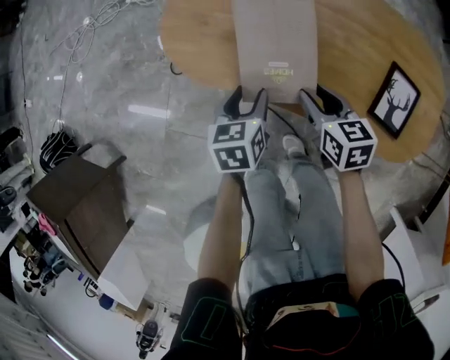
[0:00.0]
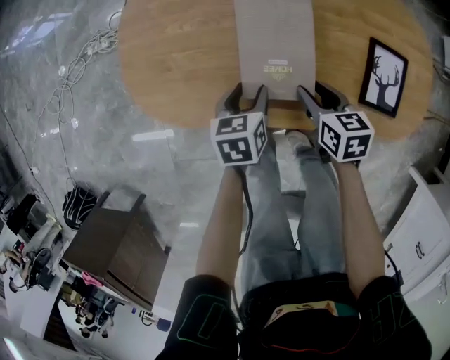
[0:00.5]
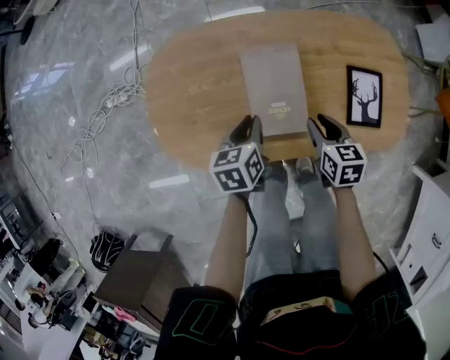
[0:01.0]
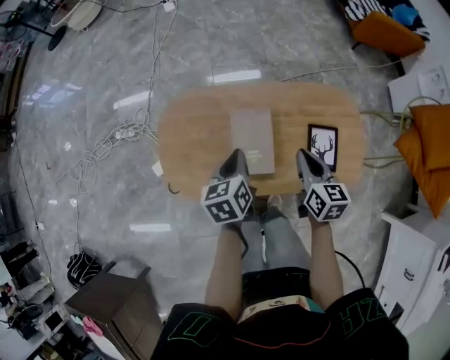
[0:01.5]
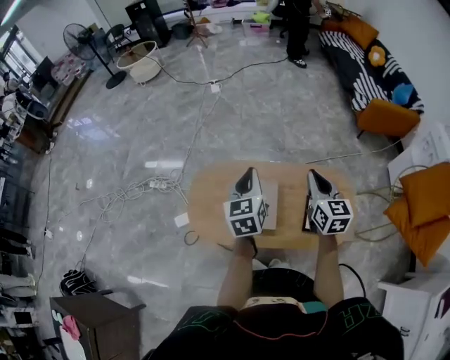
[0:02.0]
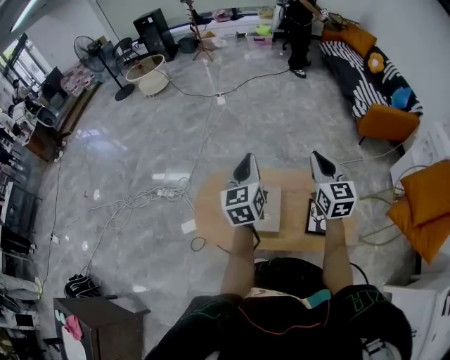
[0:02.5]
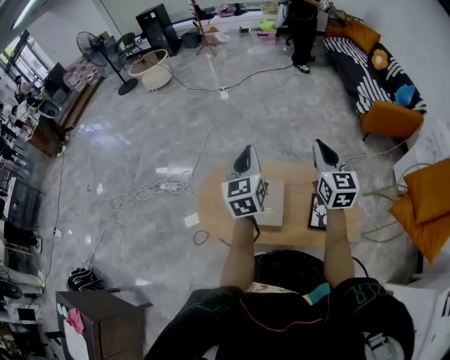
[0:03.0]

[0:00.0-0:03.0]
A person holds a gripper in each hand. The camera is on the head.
0:00.0 to 0:01.5: The grippers both shift upward by about 20 cm. The left gripper closes. The right gripper swivels approximately 40 degrees, and closes.
0:01.5 to 0:03.0: Both grippers travel together upward, roughly 30 cm. The left gripper tilts its fingers approximately 30 degrees upward. Meanwhile the right gripper changes its angle by approximately 40 degrees.

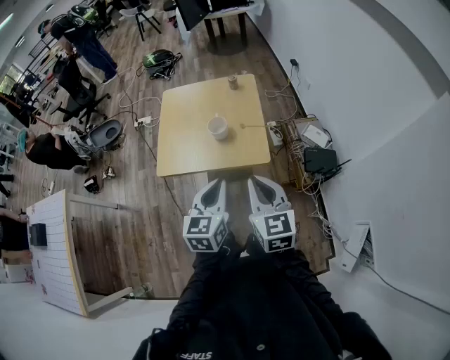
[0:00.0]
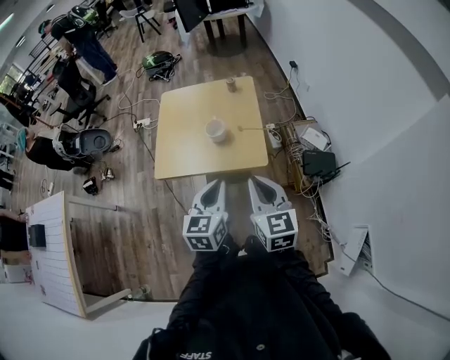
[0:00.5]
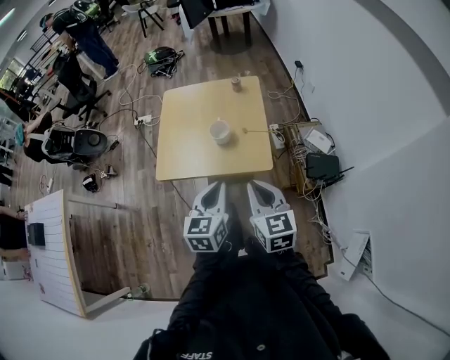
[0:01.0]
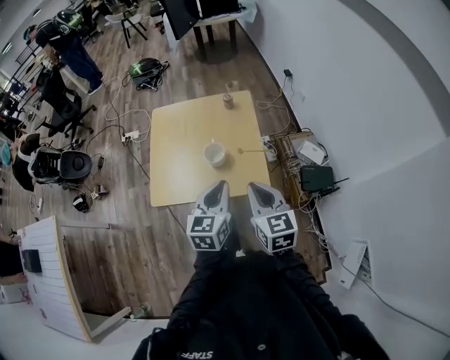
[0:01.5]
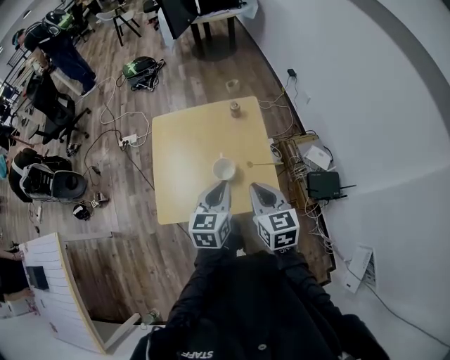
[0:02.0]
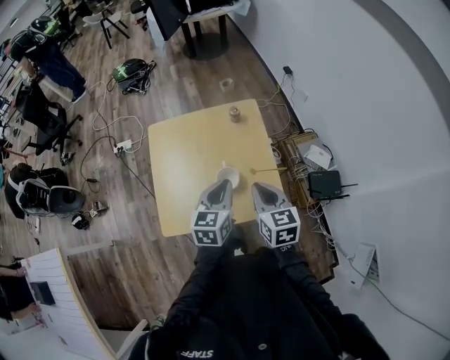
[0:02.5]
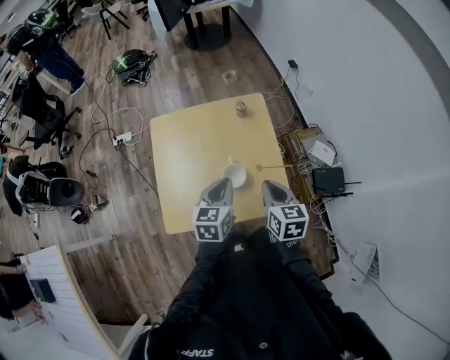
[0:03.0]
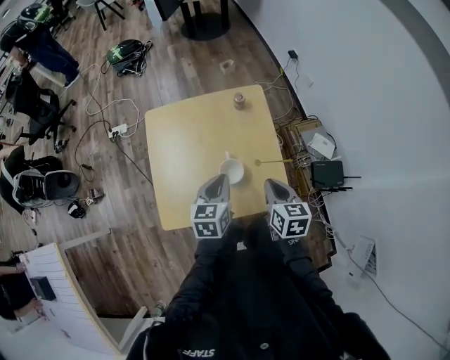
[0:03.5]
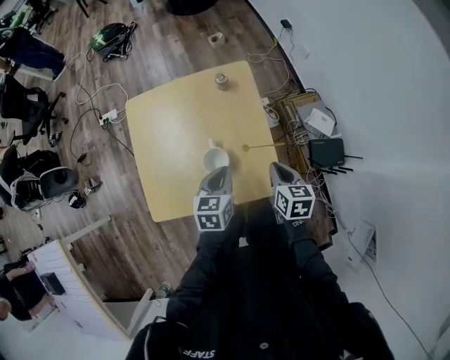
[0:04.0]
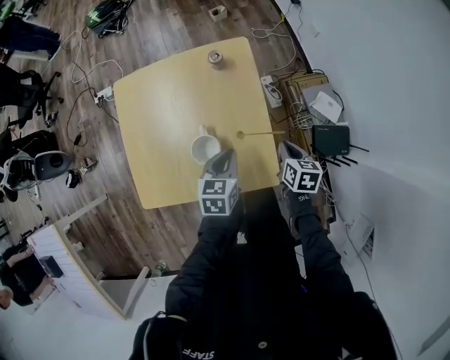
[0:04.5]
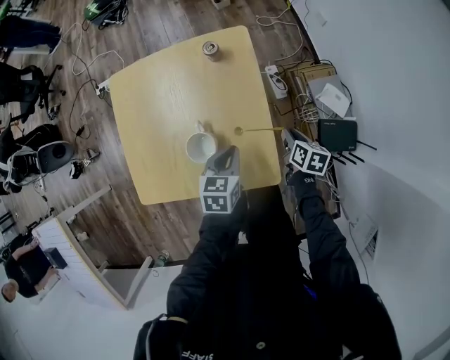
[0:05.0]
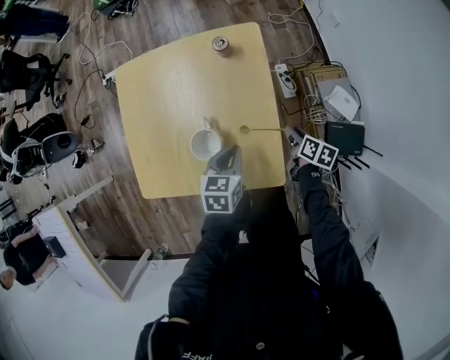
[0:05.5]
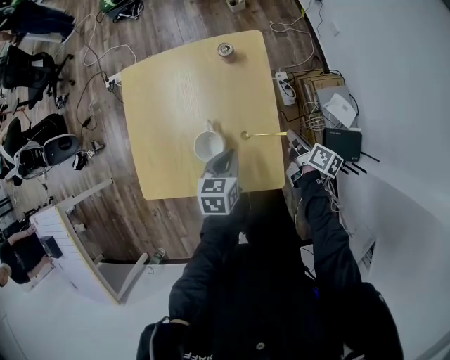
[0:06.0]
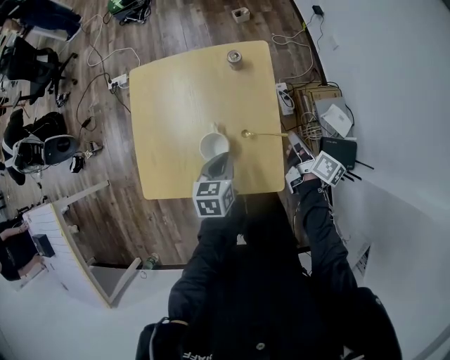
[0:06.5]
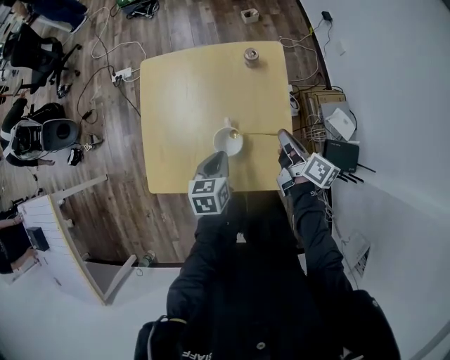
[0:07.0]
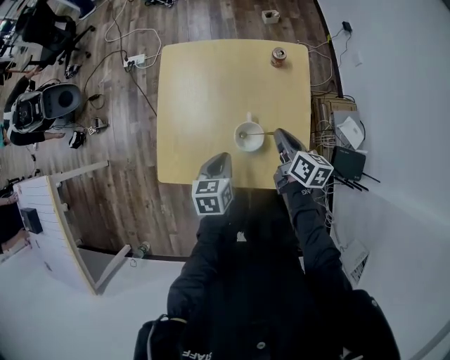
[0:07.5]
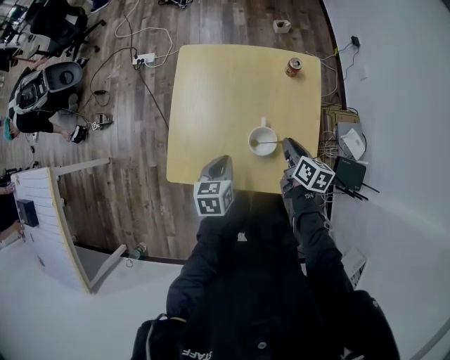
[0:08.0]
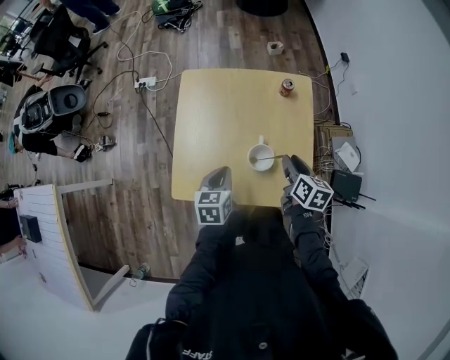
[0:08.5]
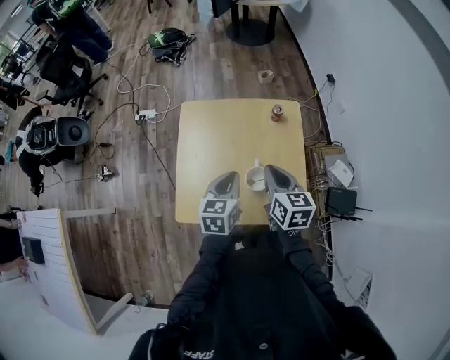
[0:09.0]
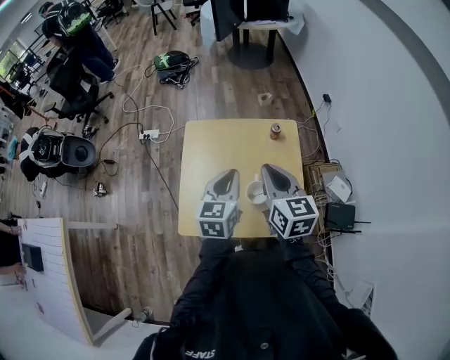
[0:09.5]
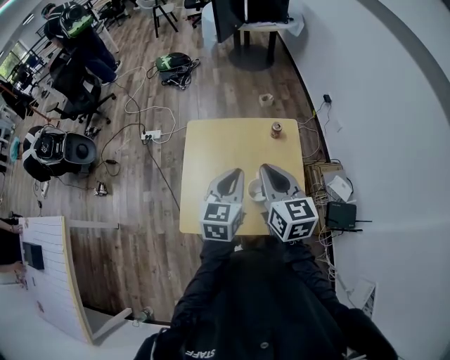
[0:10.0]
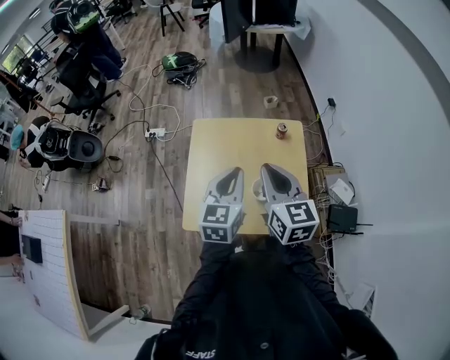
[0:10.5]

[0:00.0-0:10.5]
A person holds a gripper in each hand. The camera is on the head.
0:00.0 to 0:02.0: The two grippers go roughly 25 cm forward.
0:02.0 to 0:04.0: The left gripper is displaced downward and forward by roughly 15 cm; the right gripper goes some 20 cm downward, forward and to the right, and turns by roughly 30 degrees.
0:04.0 to 0:06.5: The right gripper goes approximately 10 cm forward and to the right, travels downward and back again, approximately 20 cm each way, twists about 40 degrees clockwise, seen from behind, and opens and closes again; the left gripper shifts some 5 cm downward.
0:06.5 to 0:08.5: The two grippers go roughly 20 cm to the left. The right gripper swivels about 40 degrees, and opens.
0:08.5 to 0:10.5: The right gripper shifts roughly 30 cm upward and to the left, rotates approximately 40 degrees, and closes, while the left gripper heads upward, covering some 25 cm, and rotates some 30 degrees.

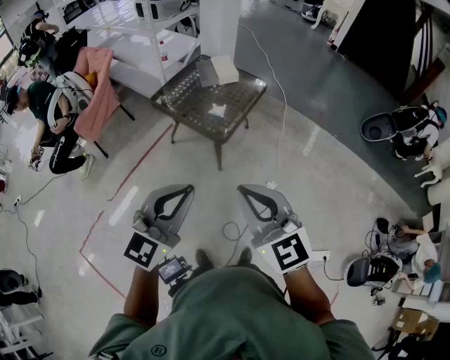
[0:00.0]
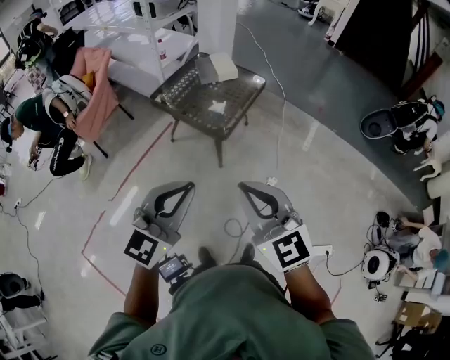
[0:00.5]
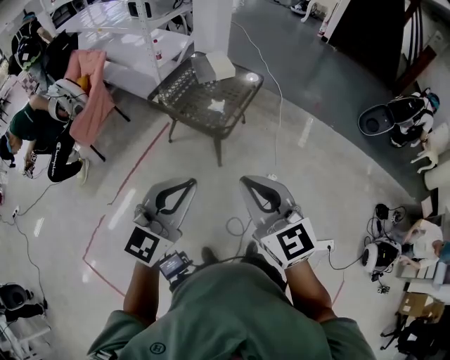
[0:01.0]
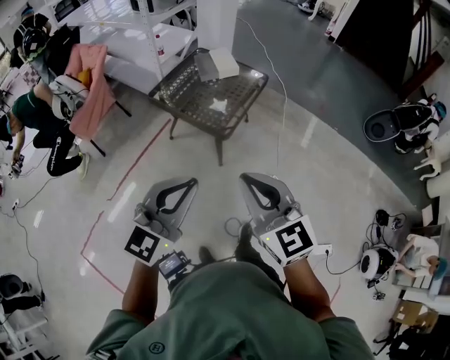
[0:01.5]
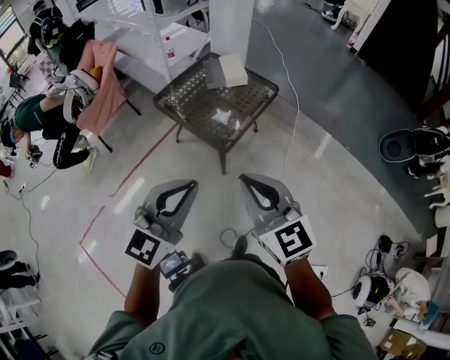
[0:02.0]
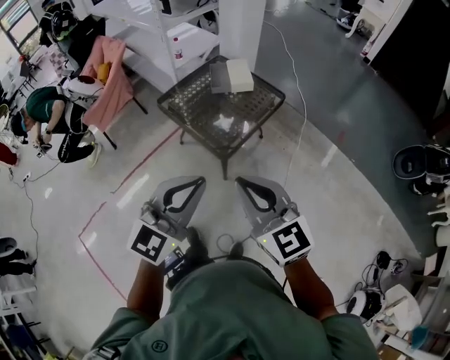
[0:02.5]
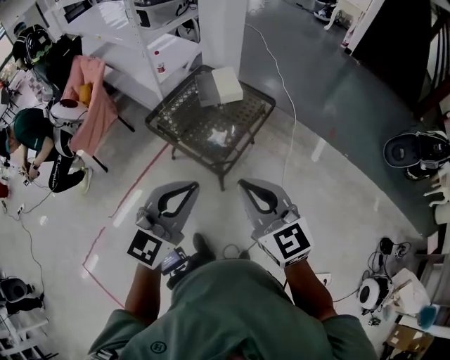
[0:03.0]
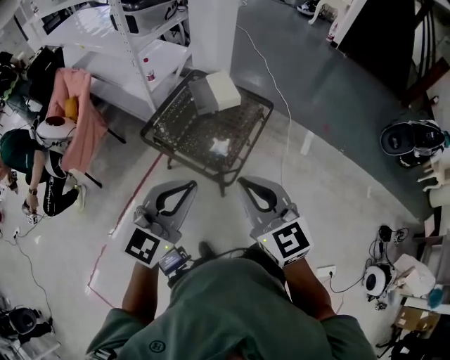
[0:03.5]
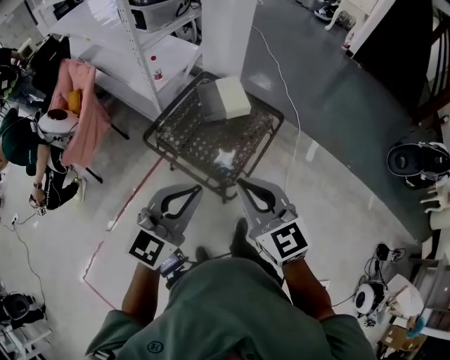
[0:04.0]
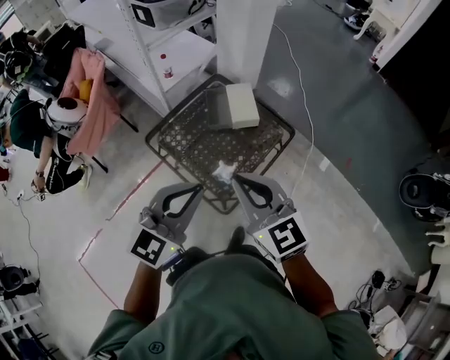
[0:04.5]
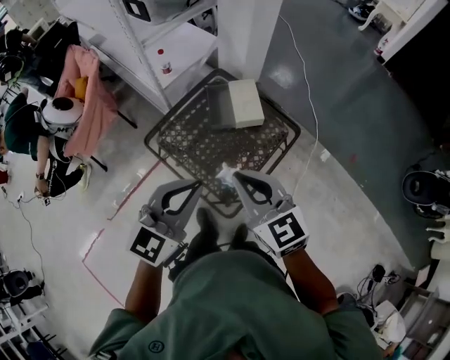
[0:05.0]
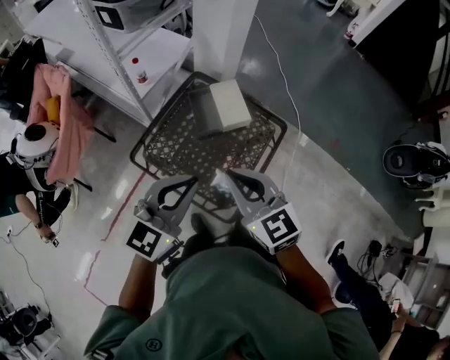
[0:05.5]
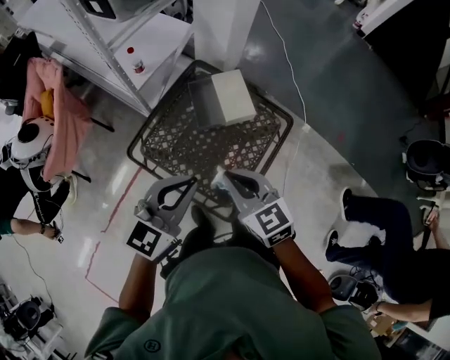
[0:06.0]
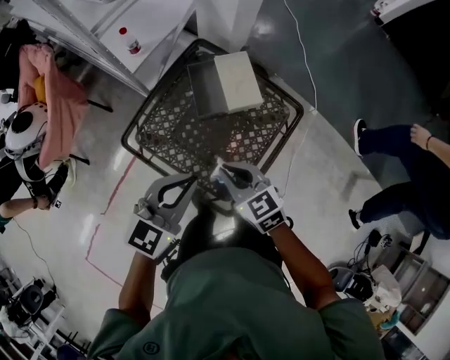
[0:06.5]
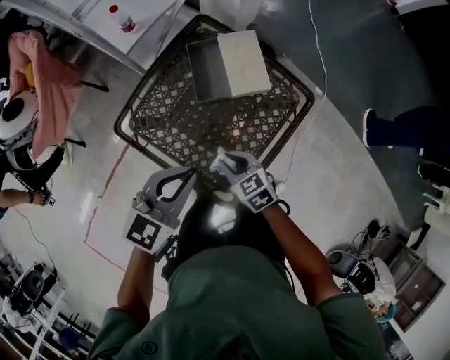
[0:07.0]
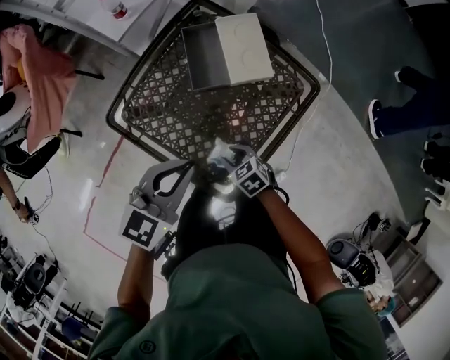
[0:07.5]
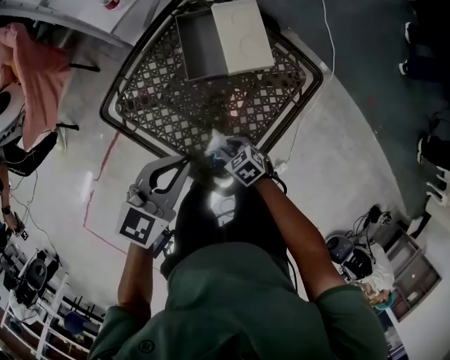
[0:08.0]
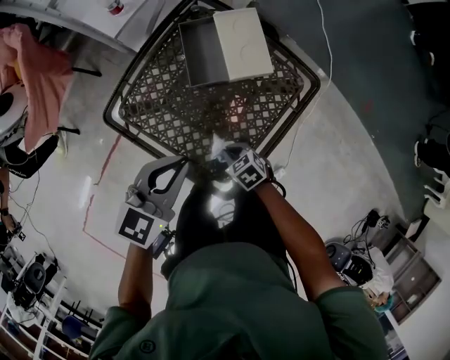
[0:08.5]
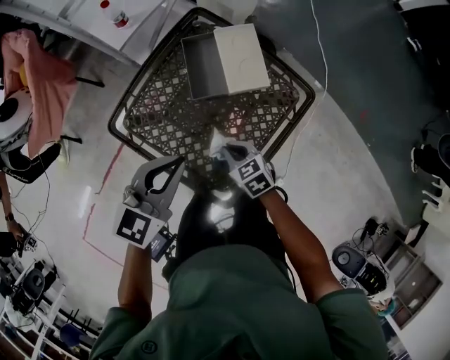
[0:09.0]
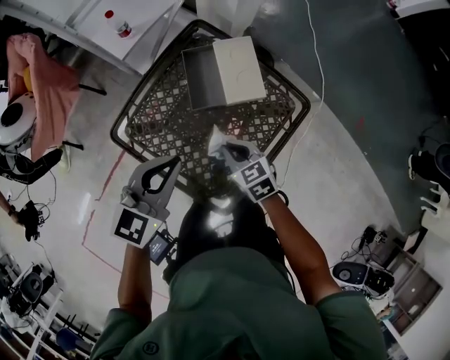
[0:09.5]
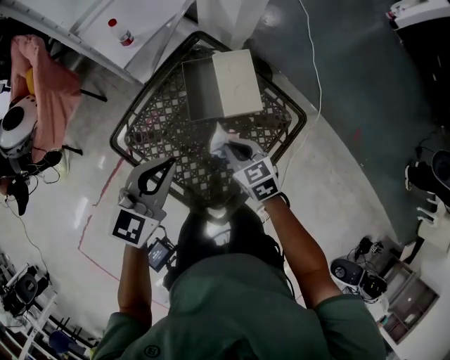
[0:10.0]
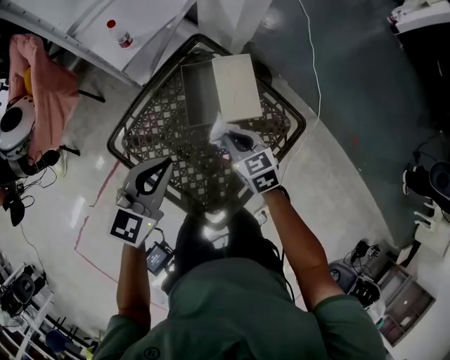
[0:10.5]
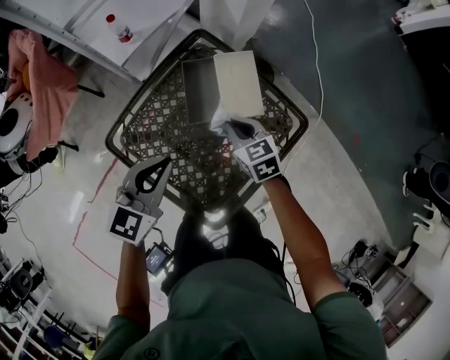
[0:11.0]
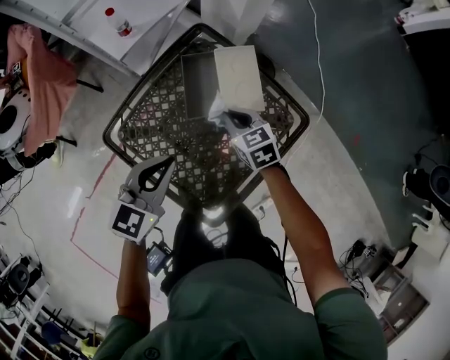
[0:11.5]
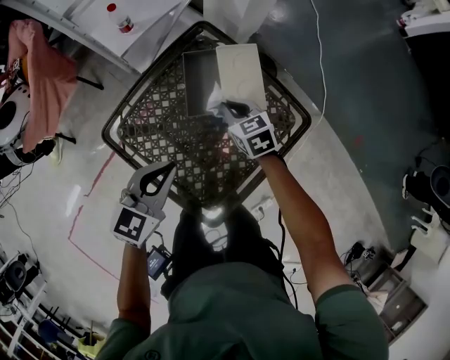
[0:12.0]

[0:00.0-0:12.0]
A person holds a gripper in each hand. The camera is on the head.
0:00.0 to 0:02.0: The left gripper is displaced forward and to the right by some 15 cm. Meanwhile the right gripper goes some 15 cm forward.
0:02.0 to 0:04.0: The grippers both shift forward by approximately 30 cm.
0:04.0 to 0:06.0: The right gripper shifts some 30 cm forward and downward. The left gripper goes roughly 25 cm forward.
0:06.0 to 0:08.0: The left gripper is displaced downward by about 20 cm. The right gripper travels downward by about 40 cm, angles its fingers downward, by roughly 30 degrees, and opens up.
0:08.0 to 0:10.0: The left gripper goes some 10 cm forward and upward, while the right gripper shifts some 25 cm upward and forward, swivels about 20 degrees, and closes up.
0:10.0 to 0:12.0: The right gripper moves forward, about 10 cm, while the left gripper is displaced downward by some 5 cm.

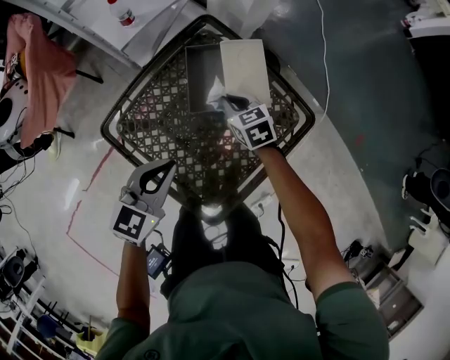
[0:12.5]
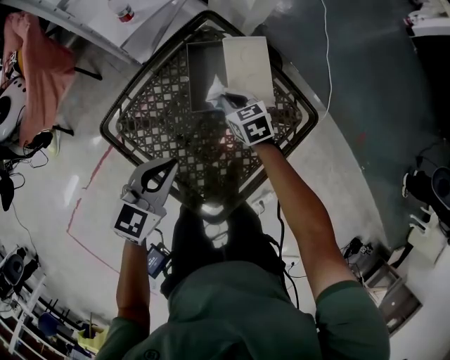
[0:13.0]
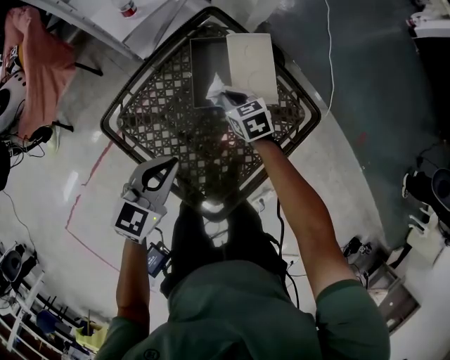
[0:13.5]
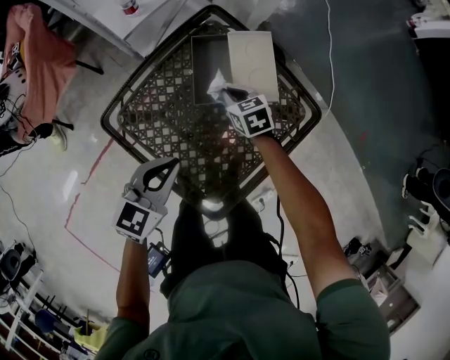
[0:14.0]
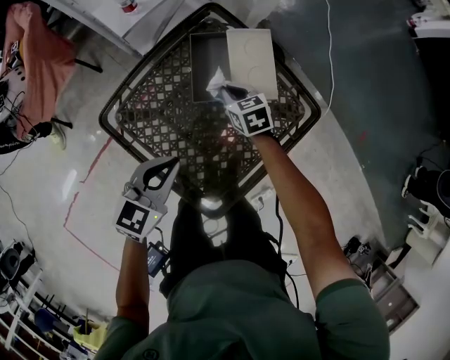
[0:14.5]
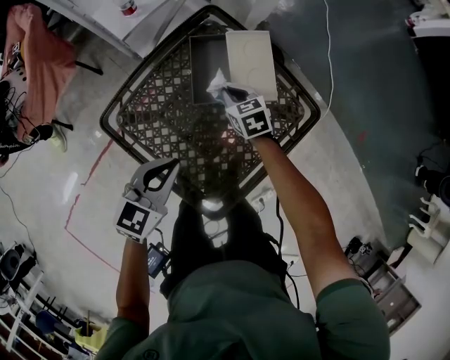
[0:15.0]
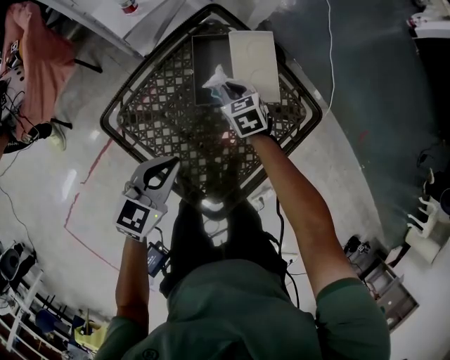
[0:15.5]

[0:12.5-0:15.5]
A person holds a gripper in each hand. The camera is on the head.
0:12.5 to 0:14.0: The right gripper shifts by roughly 5 cm.
0:14.0 to 0:15.5: There are only small adjustments of the grippers.
